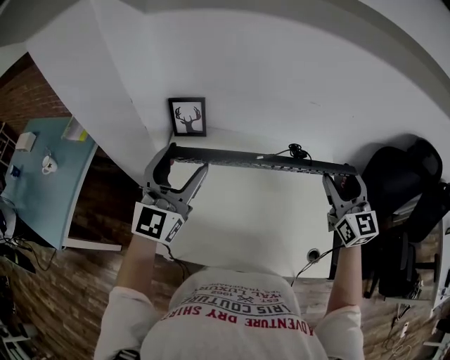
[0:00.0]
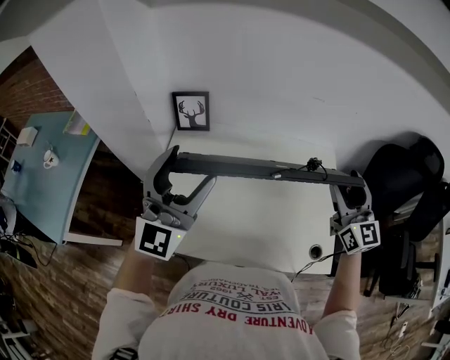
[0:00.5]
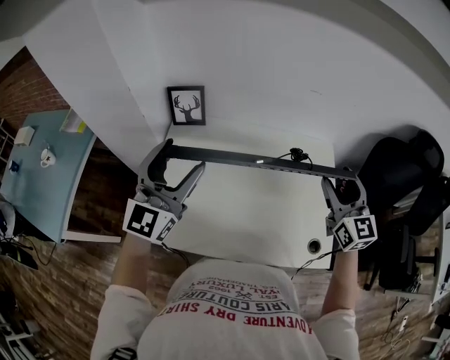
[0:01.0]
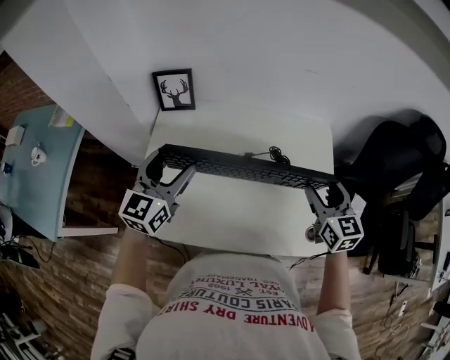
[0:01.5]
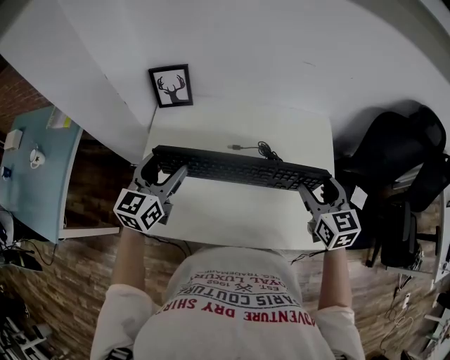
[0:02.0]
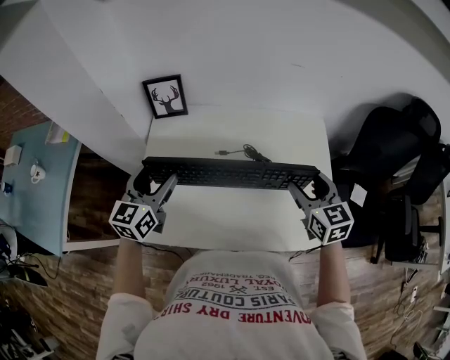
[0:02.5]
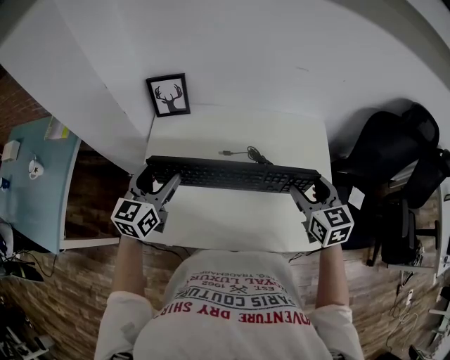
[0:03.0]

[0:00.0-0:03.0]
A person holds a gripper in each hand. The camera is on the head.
0:00.0 to 0:01.5: The right gripper heads downward and backward, covering approximately 10 cm, and changes its angle by about 20 degrees, while the left gripper shifts roughly 10 cm downward, and turns by roughly 20 degrees.
0:01.5 to 0:03.0: The right gripper ends up about 5 cm from where it was. The left gripper changes place by roughly 5 cm.

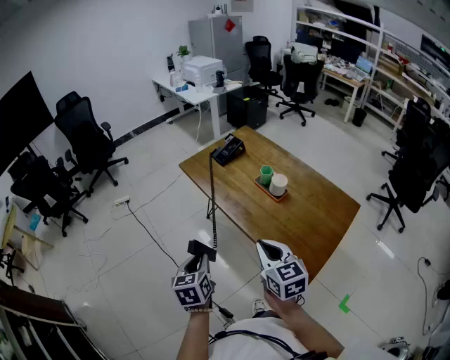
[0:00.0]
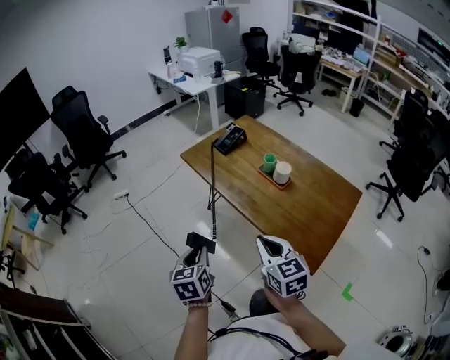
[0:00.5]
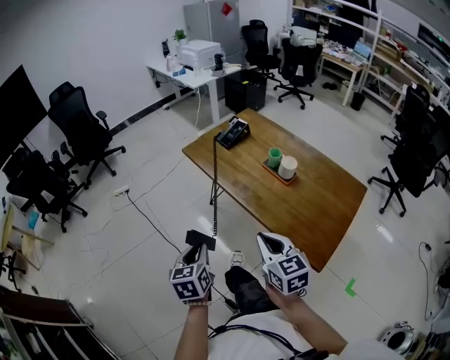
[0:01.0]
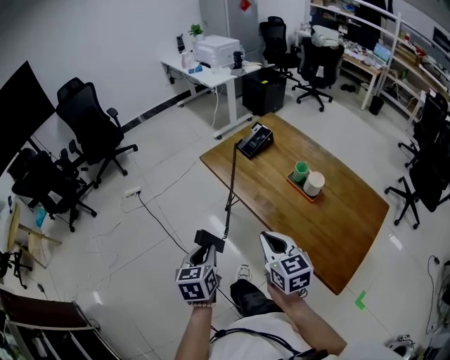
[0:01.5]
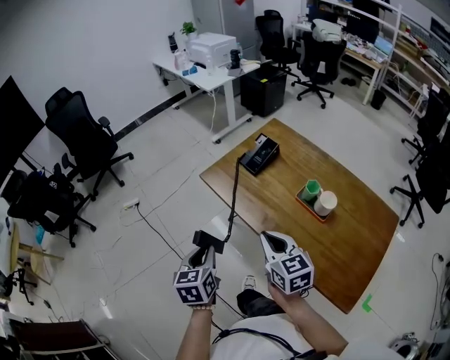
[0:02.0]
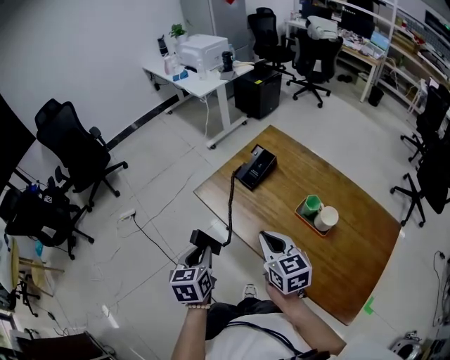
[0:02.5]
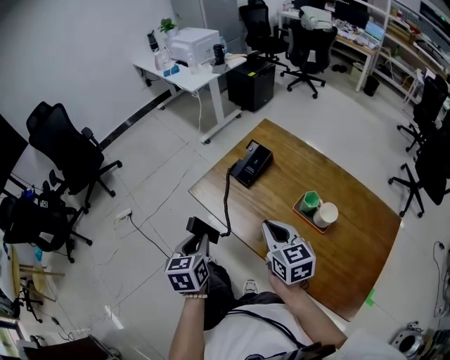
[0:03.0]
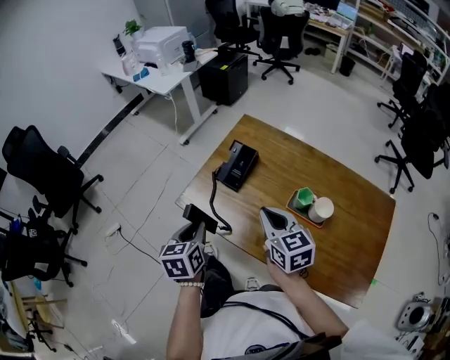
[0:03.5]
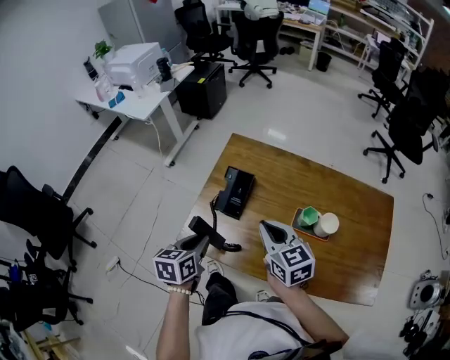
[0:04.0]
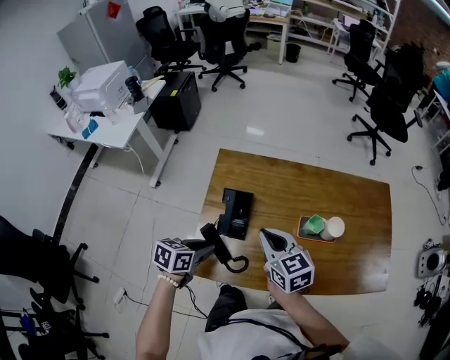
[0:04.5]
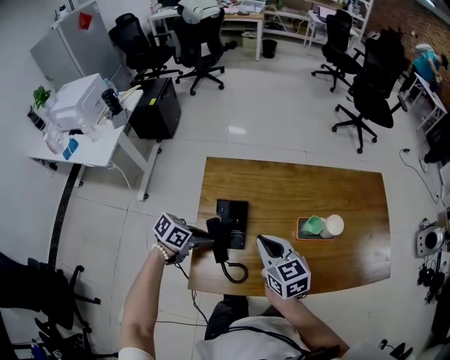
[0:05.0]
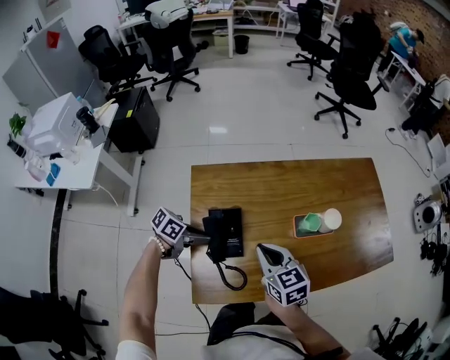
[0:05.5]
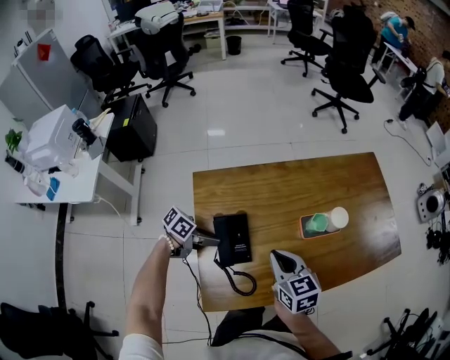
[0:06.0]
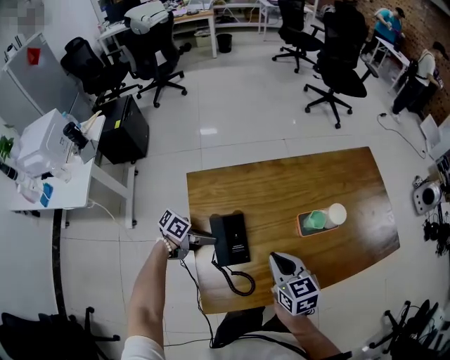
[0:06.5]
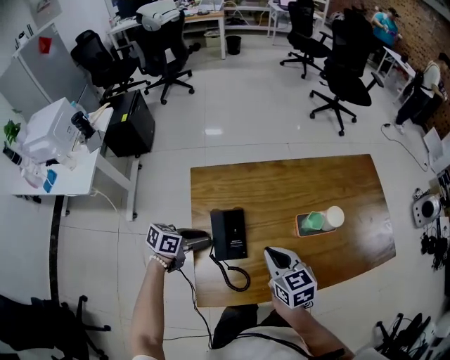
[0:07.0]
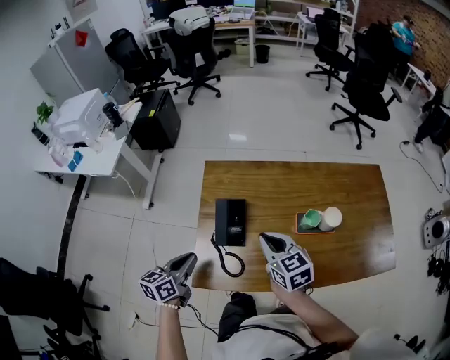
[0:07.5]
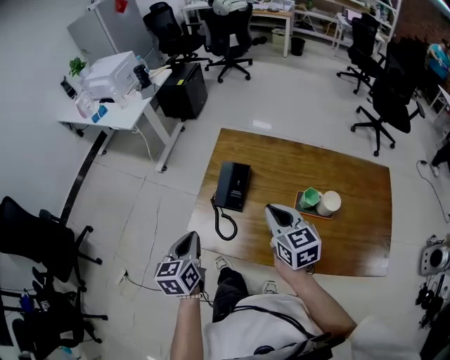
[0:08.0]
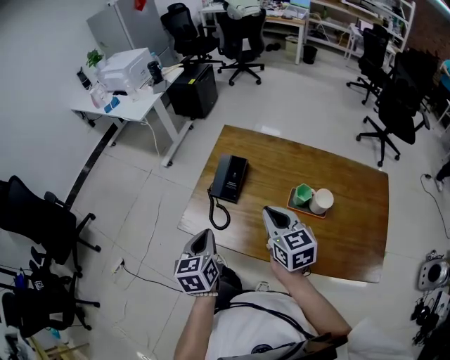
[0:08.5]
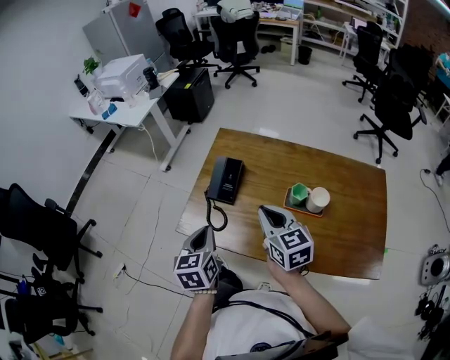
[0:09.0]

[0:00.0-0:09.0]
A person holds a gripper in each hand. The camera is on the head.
0:00.0 to 0:02.0: The left gripper shifts about 25 cm forward. The right gripper heads forward and to the left, covering approximately 25 cm.
0:02.0 to 0:04.5: The right gripper moves some 30 cm, and rotates roughly 30 degrees; the left gripper changes place by about 40 cm, and turns by some 70 degrees.
0:04.5 to 0:07.0: The right gripper moves downward, some 5 cm. Meanwhile the left gripper shifts by approximately 15 cm, and swivels some 30 degrees.
0:07.0 to 0:09.0: The left gripper changes place by some 30 cm, turns by some 80 degrees, and closes its fingers. The right gripper shifts by roughly 10 cm, and turns by some 30 degrees.

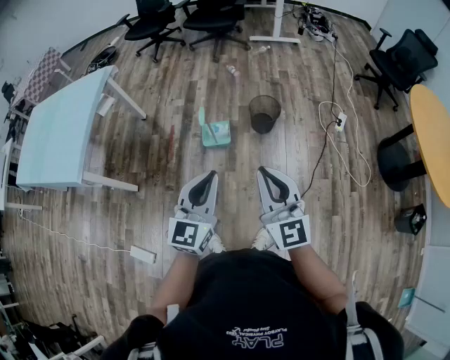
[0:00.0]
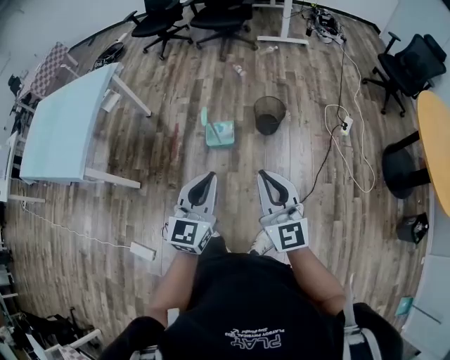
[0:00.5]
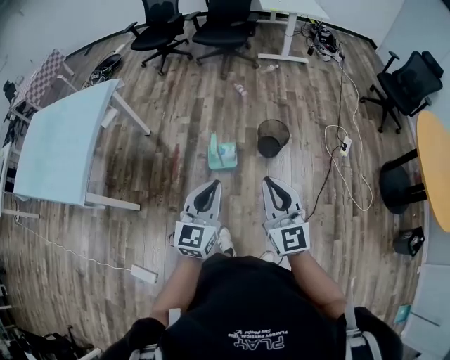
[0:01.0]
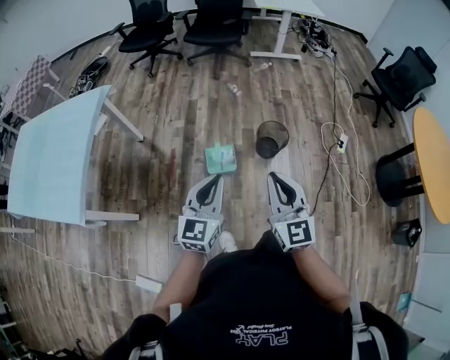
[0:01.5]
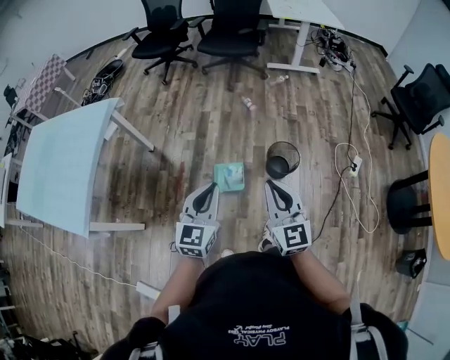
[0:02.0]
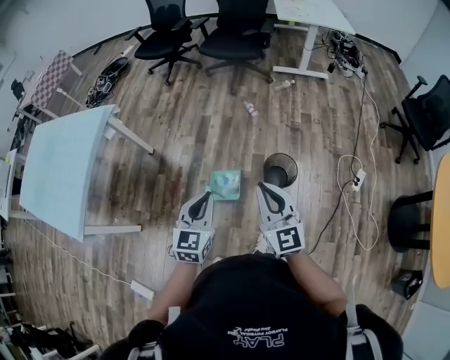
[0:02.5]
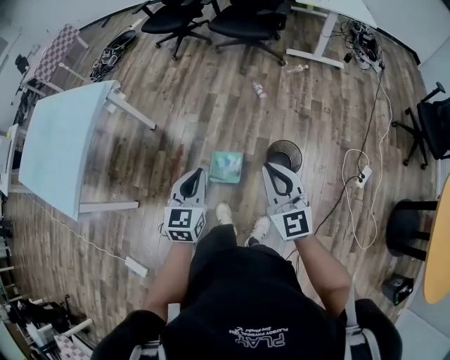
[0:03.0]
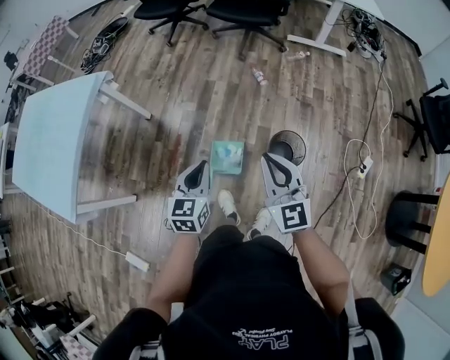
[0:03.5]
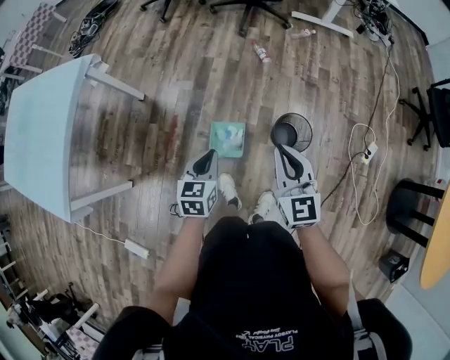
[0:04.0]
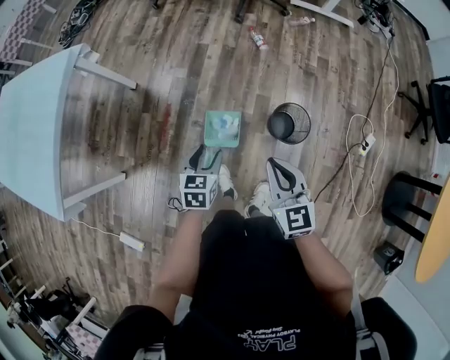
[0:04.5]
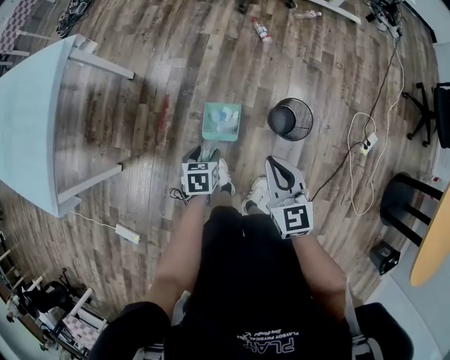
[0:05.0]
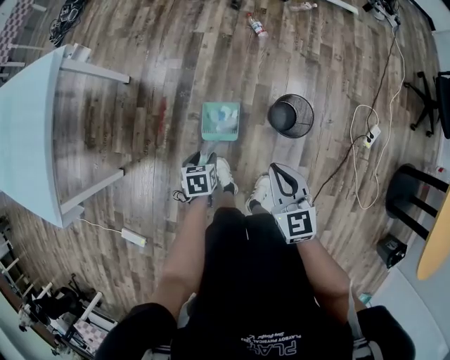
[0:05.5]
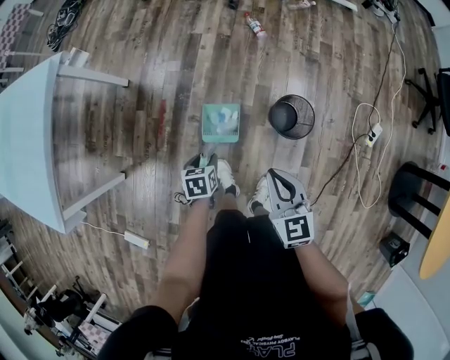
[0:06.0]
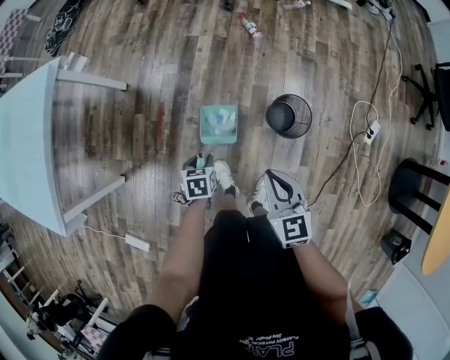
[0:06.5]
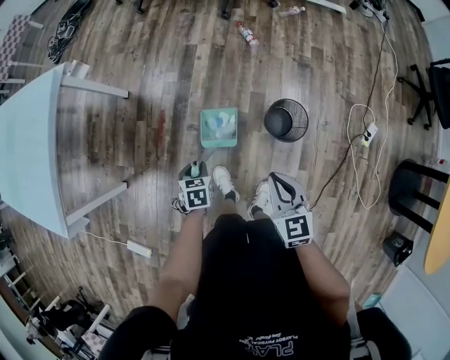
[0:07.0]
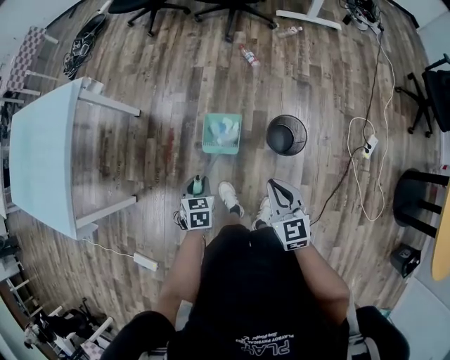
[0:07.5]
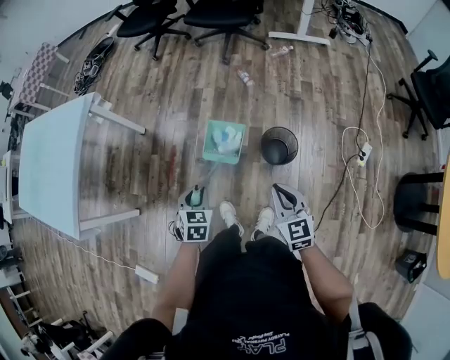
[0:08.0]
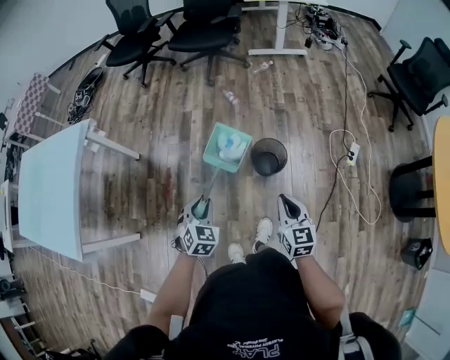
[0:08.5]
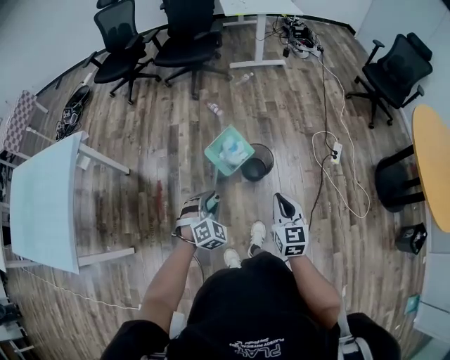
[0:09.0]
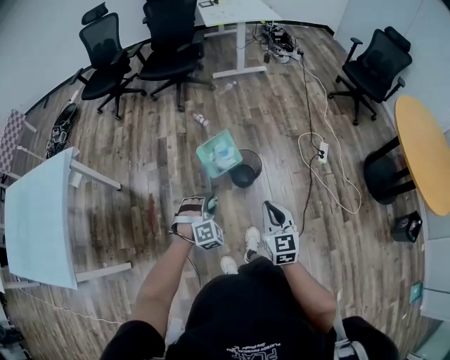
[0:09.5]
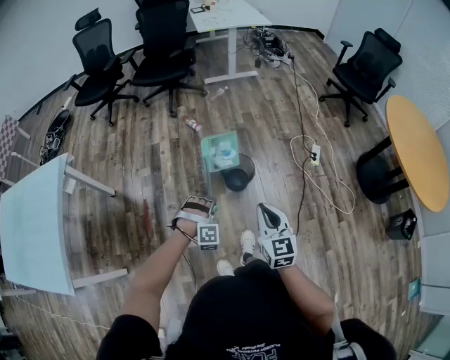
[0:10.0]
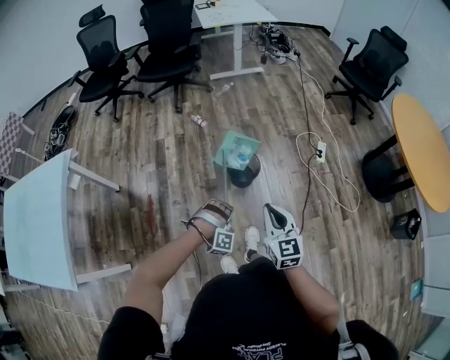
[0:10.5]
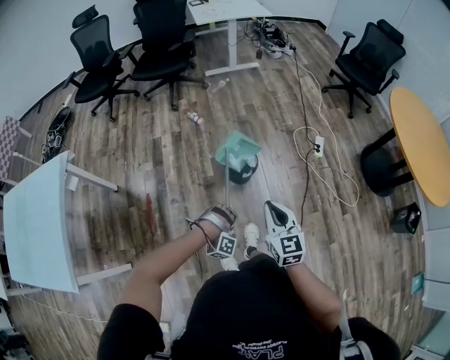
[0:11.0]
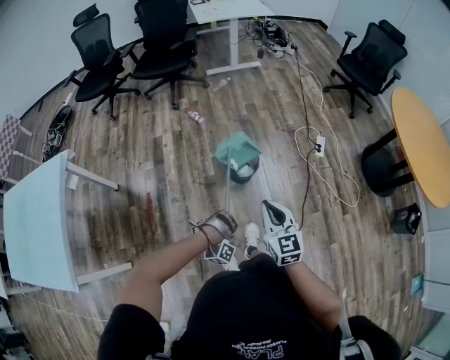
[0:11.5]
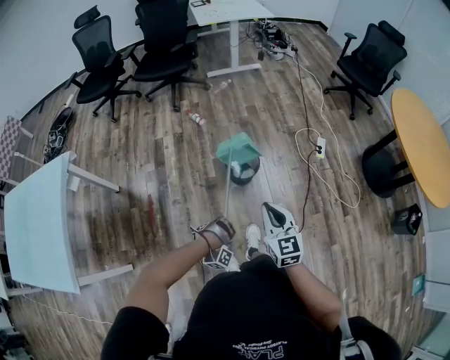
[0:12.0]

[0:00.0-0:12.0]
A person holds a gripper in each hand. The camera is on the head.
0:00.0 to 0:02.0: The two grippers go some 30 cm forward.
0:02.0 to 0:04.0: The left gripper goes approximately 25 cm downward and forward, and rotates about 30 degrees, while the right gripper moves forward and downward, approximately 25 cm.
0:04.0 to 0:06.0: The right gripper goes some 10 cm downward, while the left gripper moves downward, roughly 20 cm, rotates about 30 degrees, and opens up.
0:06.0 to 0:08.0: The right gripper goes approximately 15 cm backward, to the right and upward; the left gripper moves upward and backward, some 20 cm, turns by roughly 30 degrees, and closes.
0:08.0 to 0:10.0: The right gripper goes some 15 cm backward and upward, and changes its angle by roughly 30 degrees. The left gripper goes some 15 cm to the right, and rolls clockwise, seen from behind, by approximately 90 degrees.
0:10.0 to 0:12.0: The left gripper heads downward and backward, covering some 20 cm, and rotates around the line of its fingers by about 50 degrees, clockwise from behind.

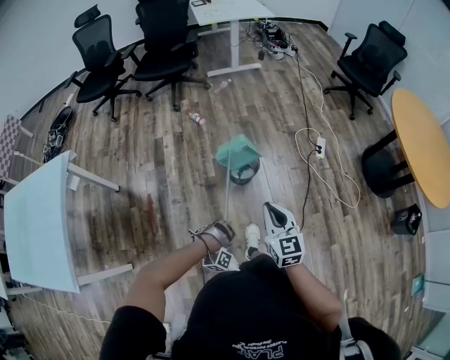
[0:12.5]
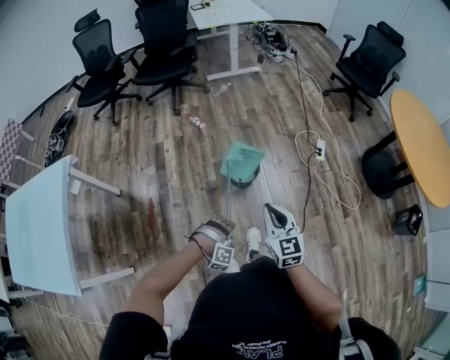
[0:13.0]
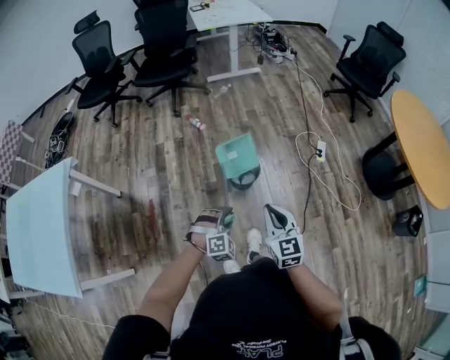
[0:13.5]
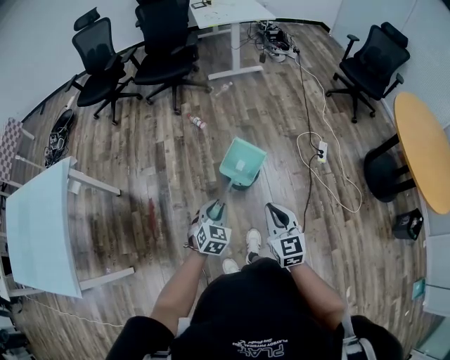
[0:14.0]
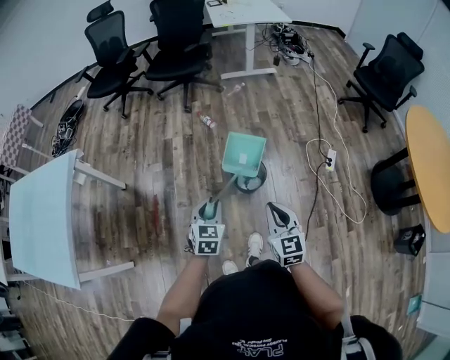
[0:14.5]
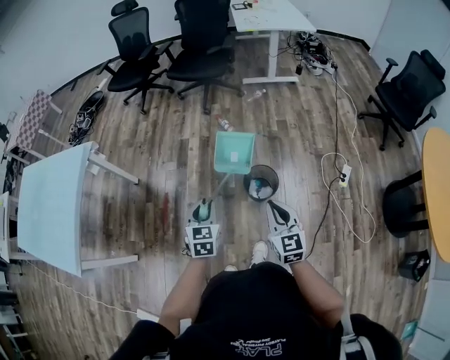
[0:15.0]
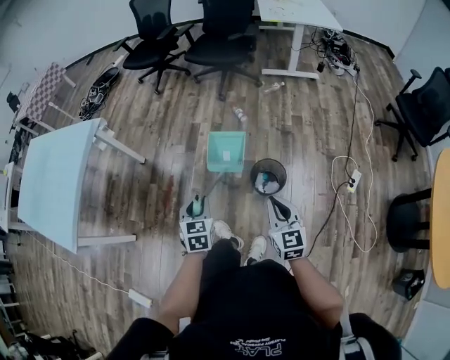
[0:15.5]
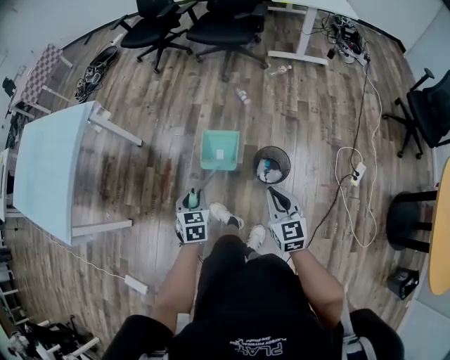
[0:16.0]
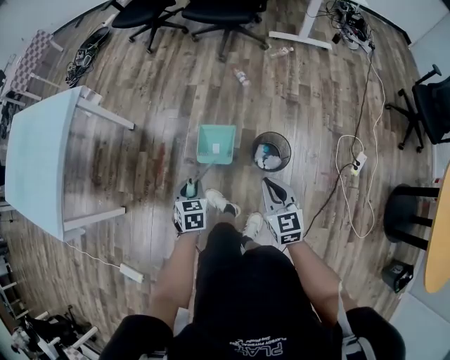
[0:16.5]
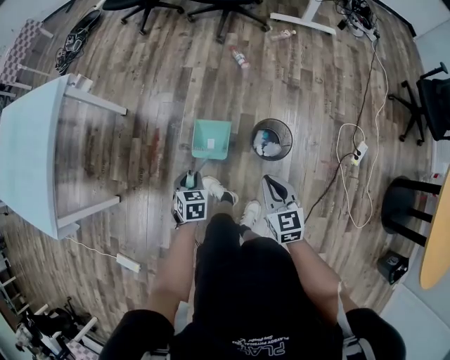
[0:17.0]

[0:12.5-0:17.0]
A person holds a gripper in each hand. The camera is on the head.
0:12.5 to 0:14.5: The left gripper is displaced upward and forward by about 25 cm, and rolls counterclockwise, seen from behind, by about 130 degrees, while the right gripper is displaced forward by roughly 5 cm.
0:14.5 to 0:17.0: The right gripper shifts about 20 cm downward and forward, and turns by approximately 20 degrees. The left gripper goes about 25 cm downward and to the left, and turns by some 30 degrees.
